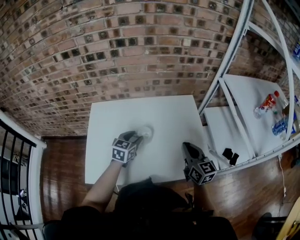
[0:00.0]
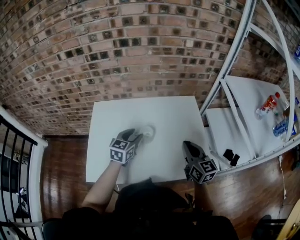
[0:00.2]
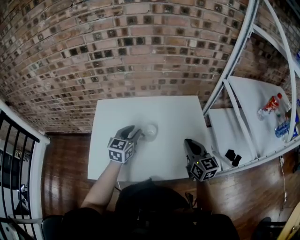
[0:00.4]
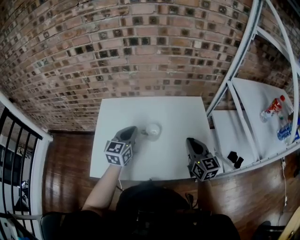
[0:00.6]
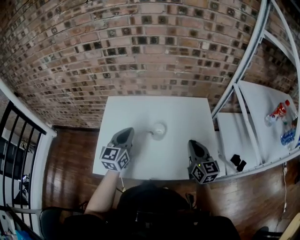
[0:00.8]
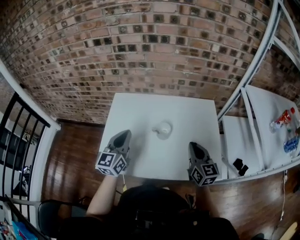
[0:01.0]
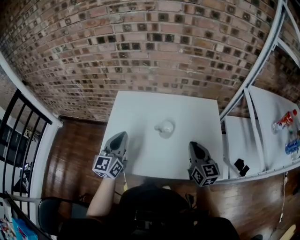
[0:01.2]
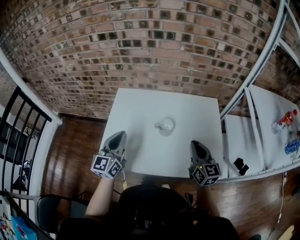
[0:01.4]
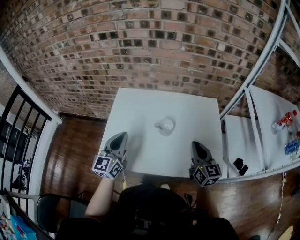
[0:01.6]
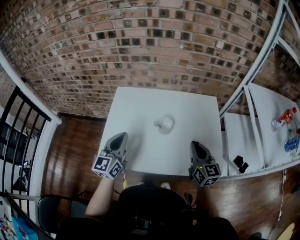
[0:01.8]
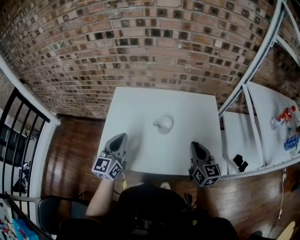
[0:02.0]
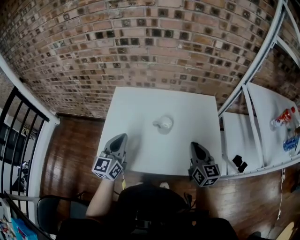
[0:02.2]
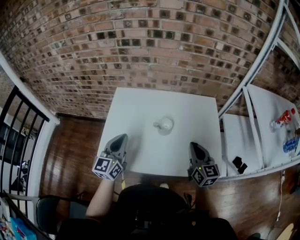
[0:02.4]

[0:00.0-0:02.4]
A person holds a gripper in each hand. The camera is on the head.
0:00.0 to 0:01.2: The right gripper travels to the left by approximately 5 cm. The left gripper shifts some 25 cm to the left, backward and upward, rotates about 40 degrees, and closes.
0:01.2 to 0:02.4: The grippers make only small movements.

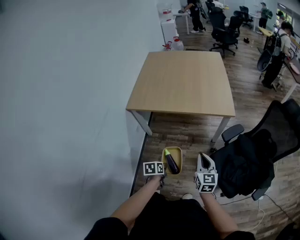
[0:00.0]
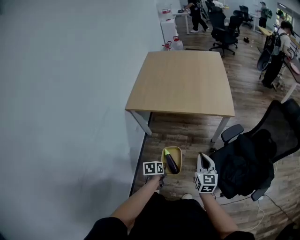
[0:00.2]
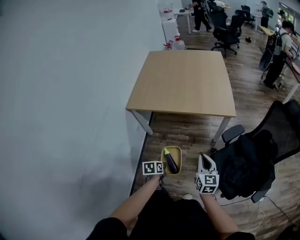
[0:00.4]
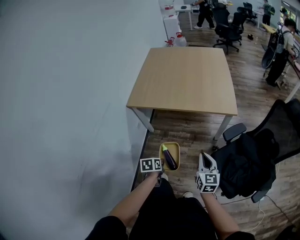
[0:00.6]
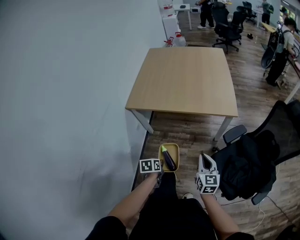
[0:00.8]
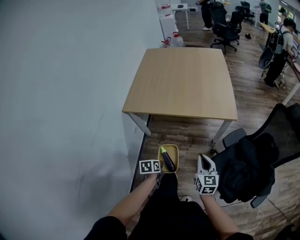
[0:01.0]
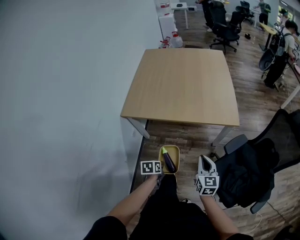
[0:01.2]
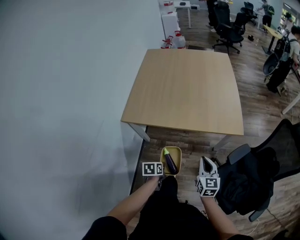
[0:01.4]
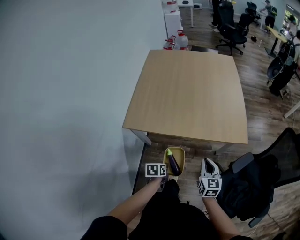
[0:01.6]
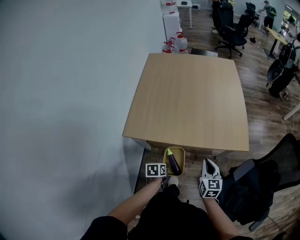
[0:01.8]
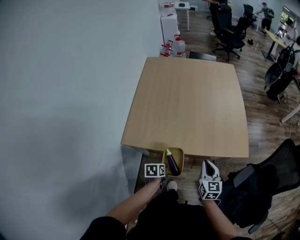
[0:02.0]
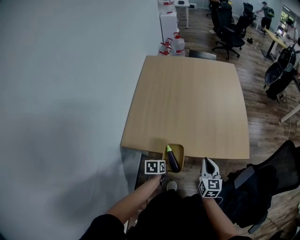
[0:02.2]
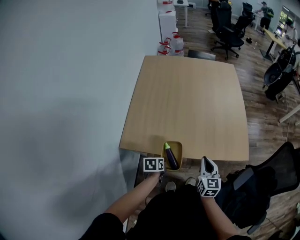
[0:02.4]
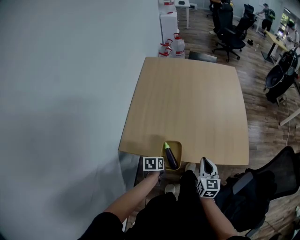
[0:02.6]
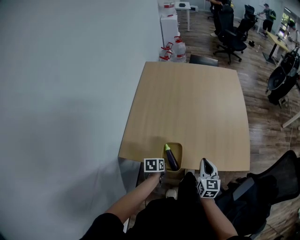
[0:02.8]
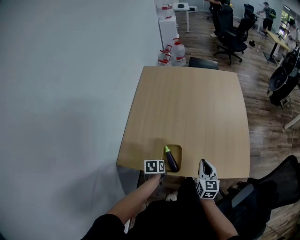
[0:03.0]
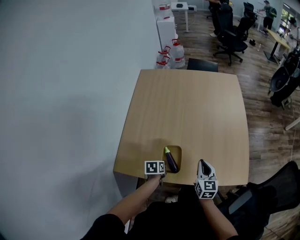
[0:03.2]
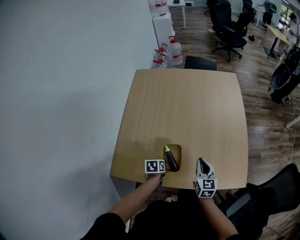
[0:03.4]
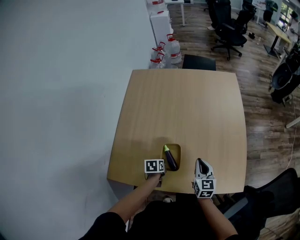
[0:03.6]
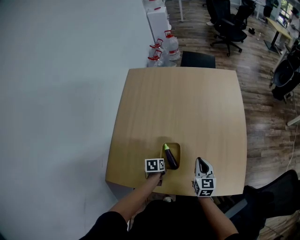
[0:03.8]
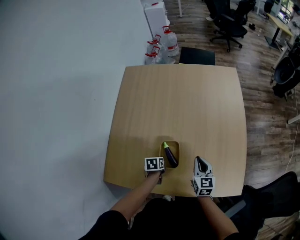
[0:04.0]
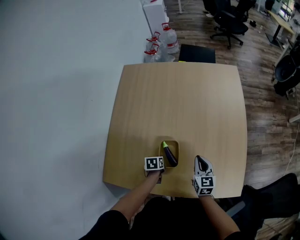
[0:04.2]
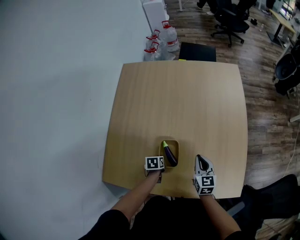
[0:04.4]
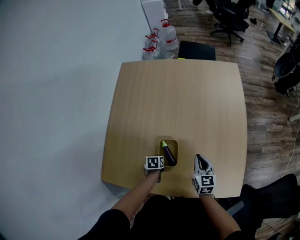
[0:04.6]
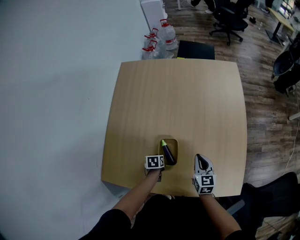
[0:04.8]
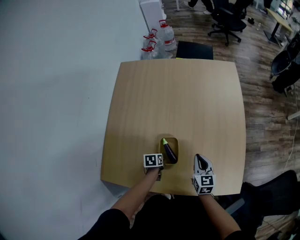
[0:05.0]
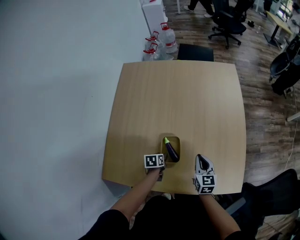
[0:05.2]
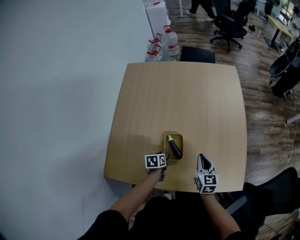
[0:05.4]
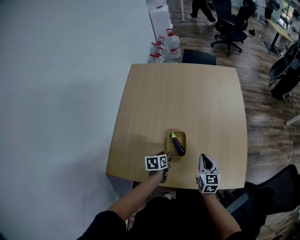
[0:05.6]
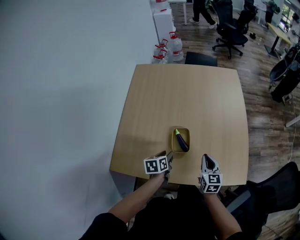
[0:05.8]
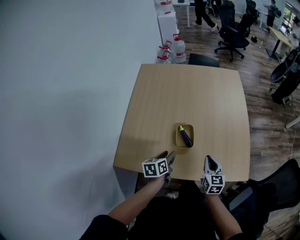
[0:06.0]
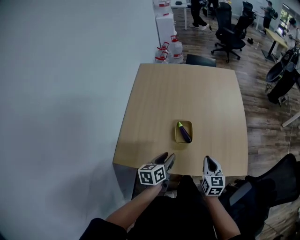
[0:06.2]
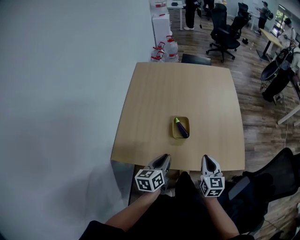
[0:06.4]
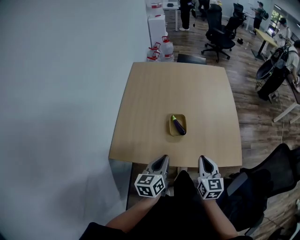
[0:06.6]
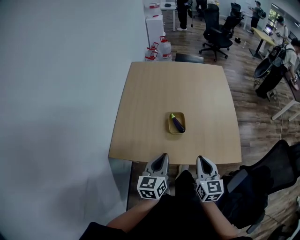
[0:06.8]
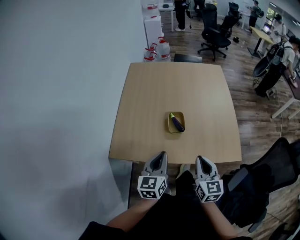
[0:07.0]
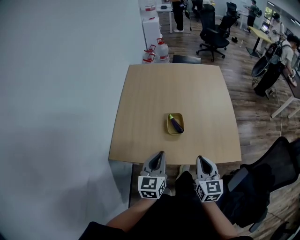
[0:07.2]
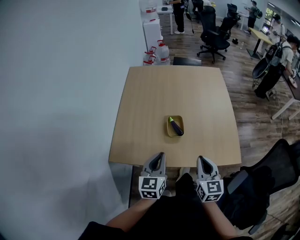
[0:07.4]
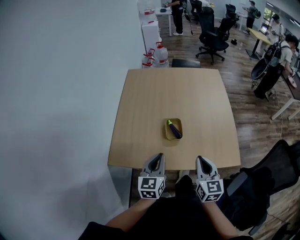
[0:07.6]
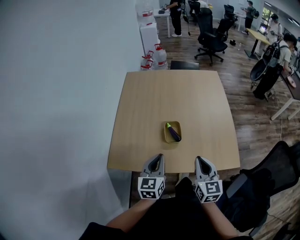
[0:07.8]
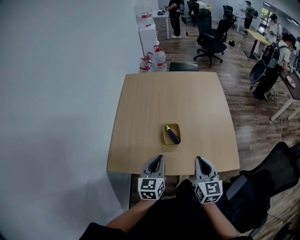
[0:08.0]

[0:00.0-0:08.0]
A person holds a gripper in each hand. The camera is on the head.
0:00.0 to 0:01.6: Both grippers travel together forward, some 25 cm.
0:01.6 to 0:03.2: The two grippers go about 30 cm forward.
0:03.2 to 0:04.8: The grippers both shift forward and downward by roughly 15 cm.
0:04.8 to 0:06.4: The right gripper travels backward and upward by about 25 cm. Meanwhile the left gripper travels upward and backward by approximately 35 cm, points its fingers some 40 degrees further upward, and opens, then closes again.
0:06.4 to 0:08.0: The right gripper moves upward, about 10 cm, while the left gripper travels upward by some 5 cm, and changes its angle by some 30 degrees.

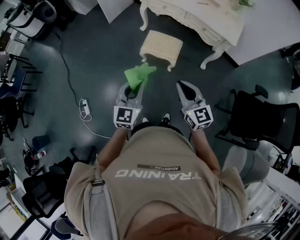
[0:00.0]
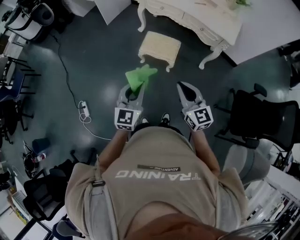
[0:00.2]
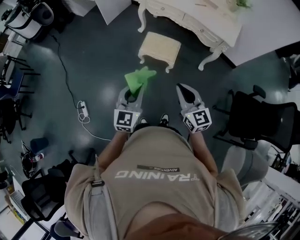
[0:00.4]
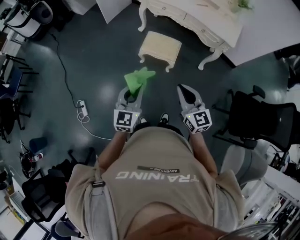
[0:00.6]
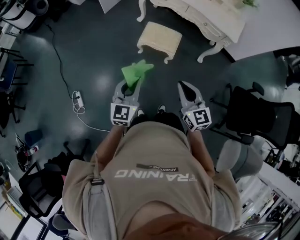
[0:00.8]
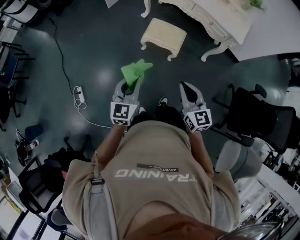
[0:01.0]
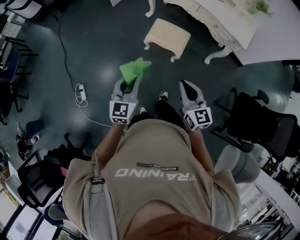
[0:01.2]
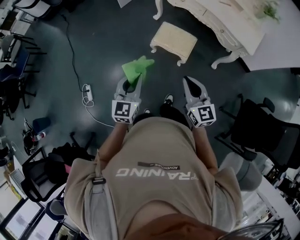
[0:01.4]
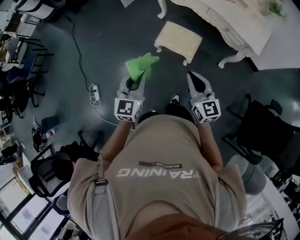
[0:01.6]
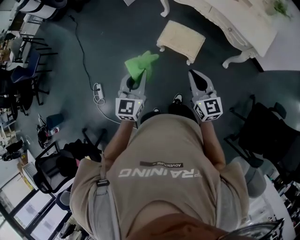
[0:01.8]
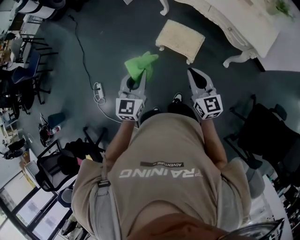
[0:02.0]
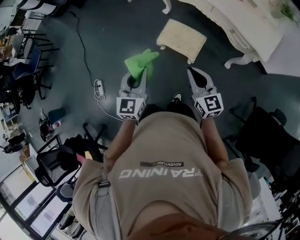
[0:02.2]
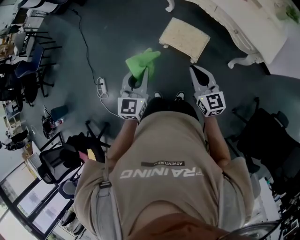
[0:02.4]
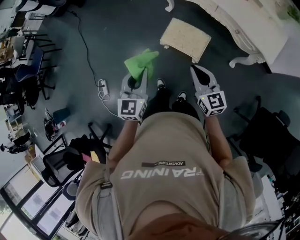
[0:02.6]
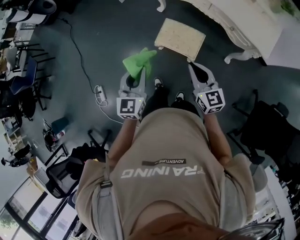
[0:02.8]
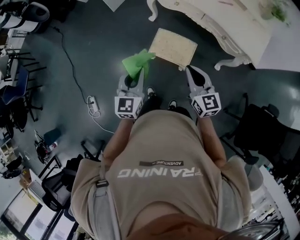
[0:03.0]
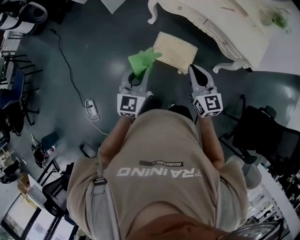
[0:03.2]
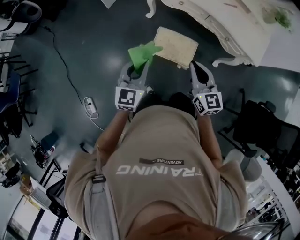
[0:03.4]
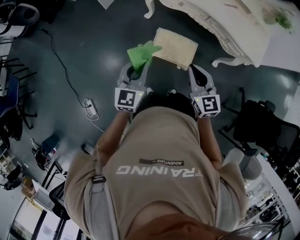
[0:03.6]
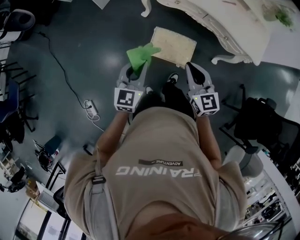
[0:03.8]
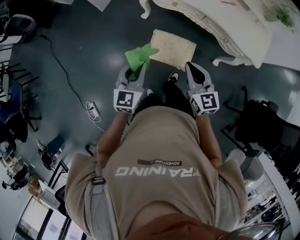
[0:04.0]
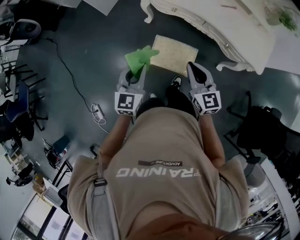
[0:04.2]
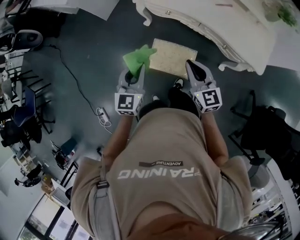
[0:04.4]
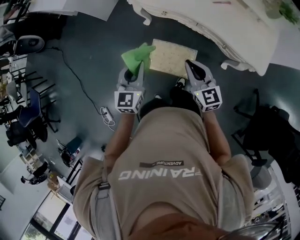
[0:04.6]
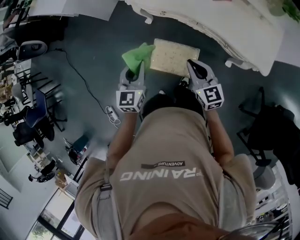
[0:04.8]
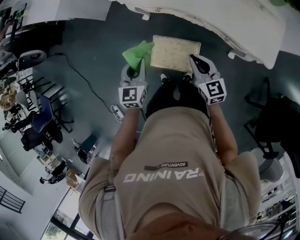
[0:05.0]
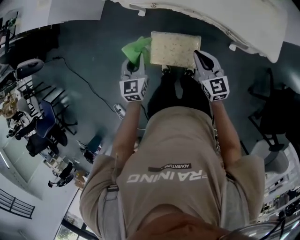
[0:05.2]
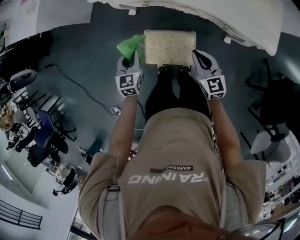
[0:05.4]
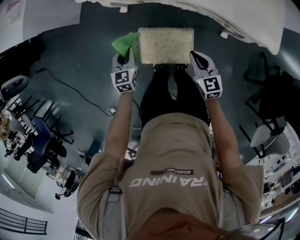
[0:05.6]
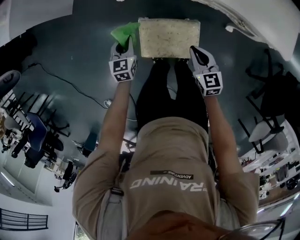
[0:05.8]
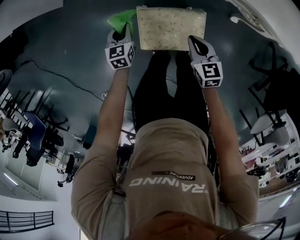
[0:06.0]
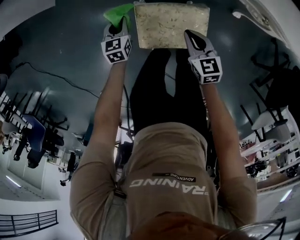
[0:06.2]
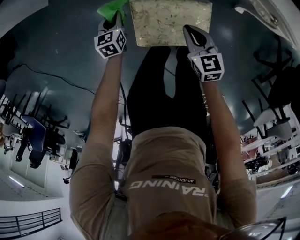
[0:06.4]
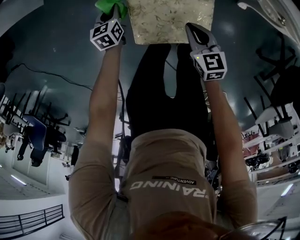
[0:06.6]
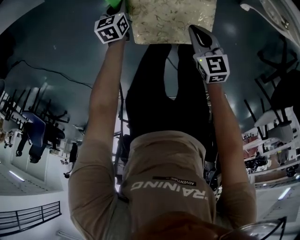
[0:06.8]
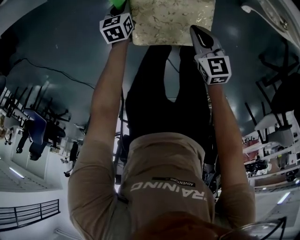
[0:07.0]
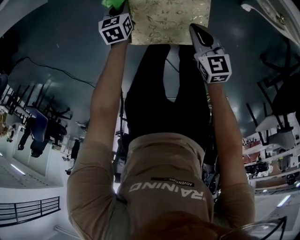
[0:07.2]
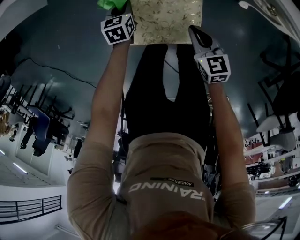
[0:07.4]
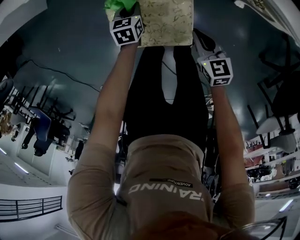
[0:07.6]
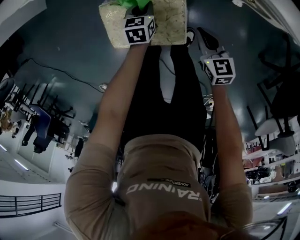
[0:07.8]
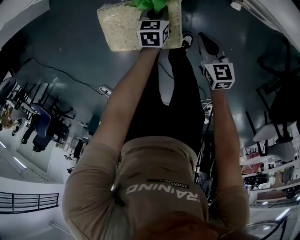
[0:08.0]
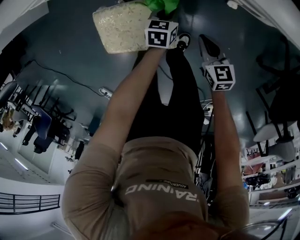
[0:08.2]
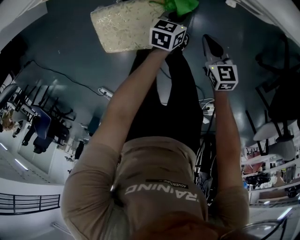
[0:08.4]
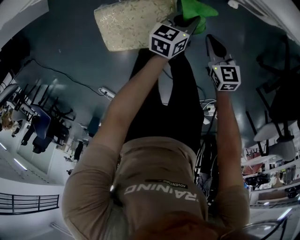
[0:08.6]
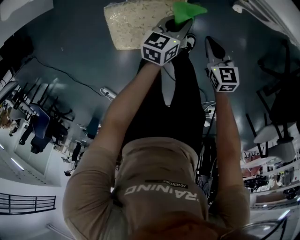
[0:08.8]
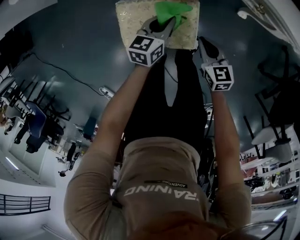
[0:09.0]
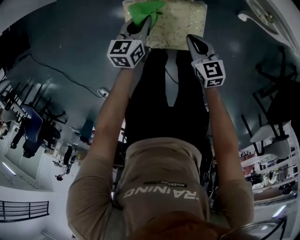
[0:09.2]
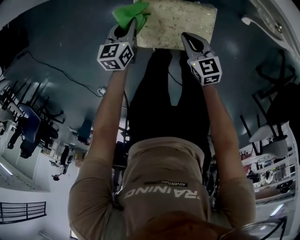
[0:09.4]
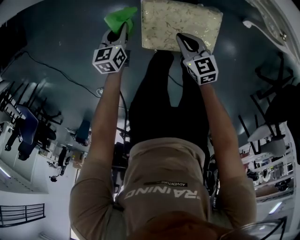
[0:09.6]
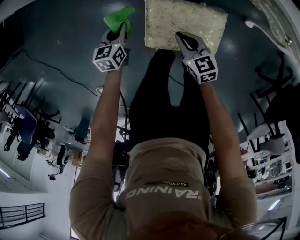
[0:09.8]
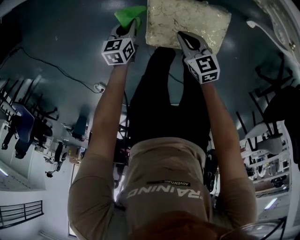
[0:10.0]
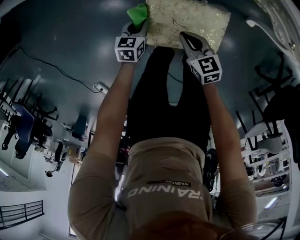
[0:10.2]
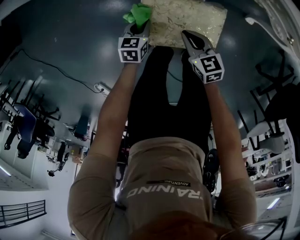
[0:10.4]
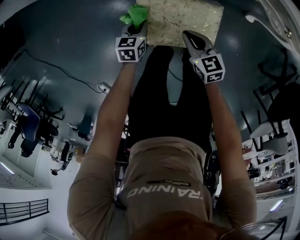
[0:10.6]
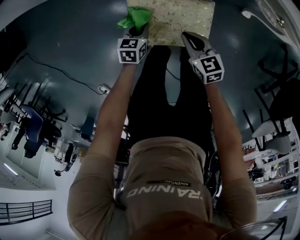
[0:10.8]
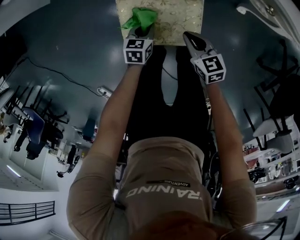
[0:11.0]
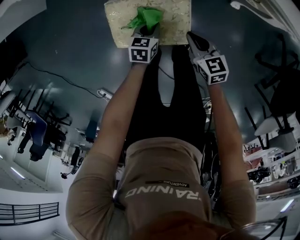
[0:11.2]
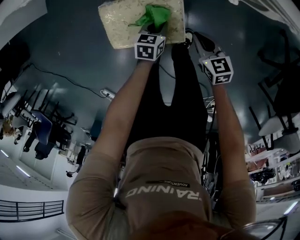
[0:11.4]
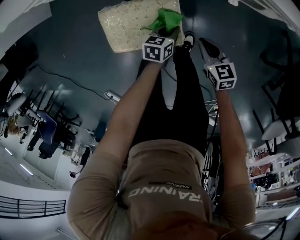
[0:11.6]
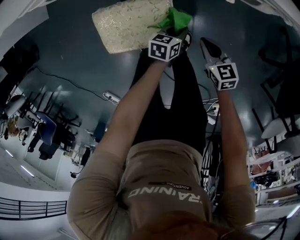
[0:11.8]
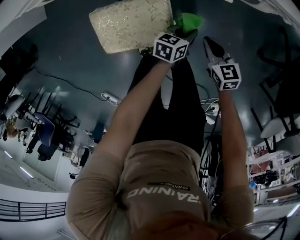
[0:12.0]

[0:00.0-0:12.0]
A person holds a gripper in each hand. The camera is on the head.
0:00.0 to 0:01.6: Both grippers travel together forward, approximately 15 cm.
0:01.6 to 0:03.0: The grippers both shift forward by about 20 cm.
0:03.0 to 0:04.4: The two grippers go about 20 cm forward.
0:04.4 to 0:06.0: The right gripper is displaced downward by some 40 cm, and changes its angle by roughly 30 degrees; the left gripper goes about 50 cm downward and forward, and swivels roughly 30 degrees.
0:06.0 to 0:07.6: The grippers both shift to the right and downward by roughly 20 cm.
0:07.6 to 0:09.0: The right gripper moves roughly 15 cm to the right and comes back. The left gripper shifts roughly 10 cm upward, reaches about 30 cm to the right, then returns, and swivels about 30 degrees.
0:09.0 to 0:10.4: The right gripper is displaced to the left by about 20 cm. Meanwhile the left gripper moves to the left and downward, about 25 cm.
0:10.4 to 0:12.0: The right gripper shifts by some 35 cm; the left gripper moves about 50 cm, and turns by roughly 30 degrees.

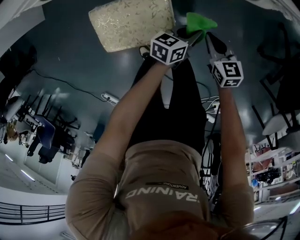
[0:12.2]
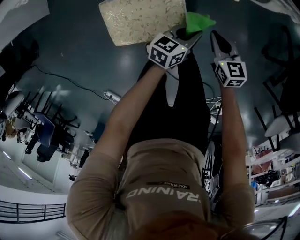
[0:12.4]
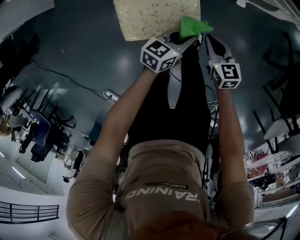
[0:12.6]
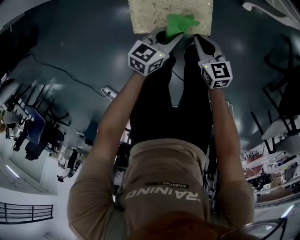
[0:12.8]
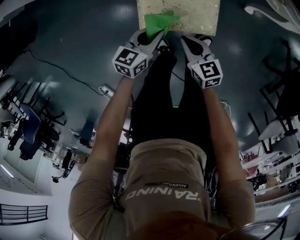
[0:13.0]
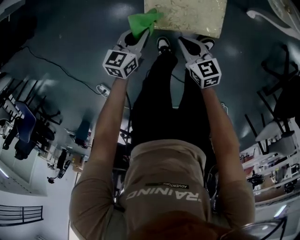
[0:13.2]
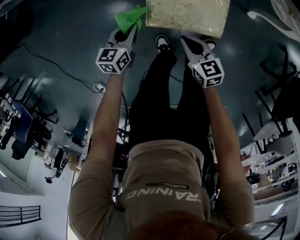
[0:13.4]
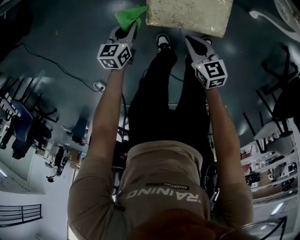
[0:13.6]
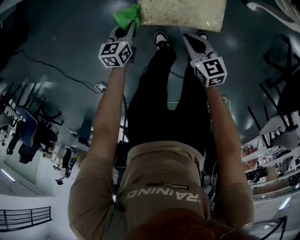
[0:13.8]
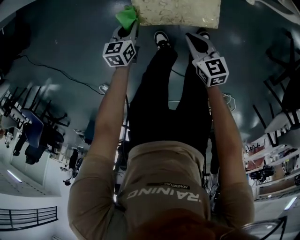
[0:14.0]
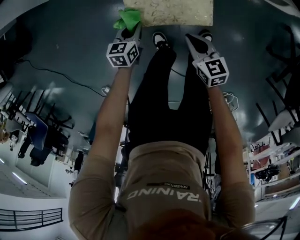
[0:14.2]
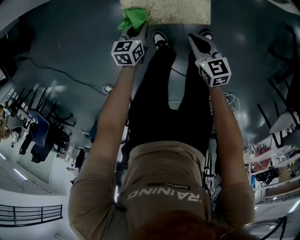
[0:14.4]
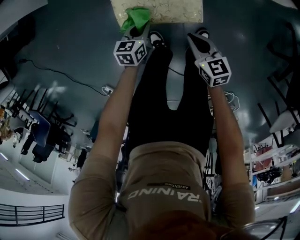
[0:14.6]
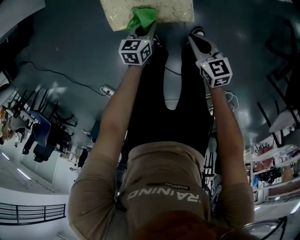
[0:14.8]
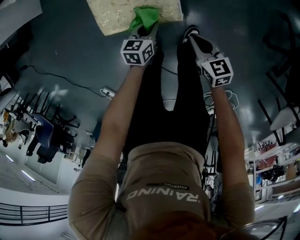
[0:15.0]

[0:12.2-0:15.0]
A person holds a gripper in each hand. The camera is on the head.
0:12.2 to 0:13.6: The right gripper changes place by about 35 cm; the left gripper shifts by roughly 50 cm, and swivels approximately 40 degrees.
0:13.6 to 0:15.0: Both grippers move to the right, about 30 cm.
